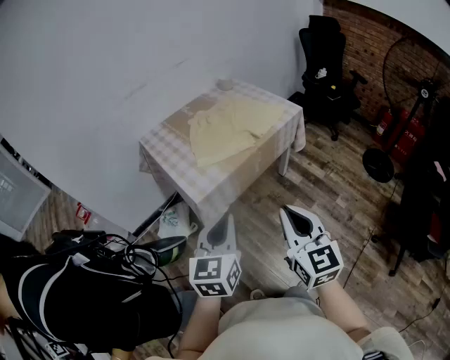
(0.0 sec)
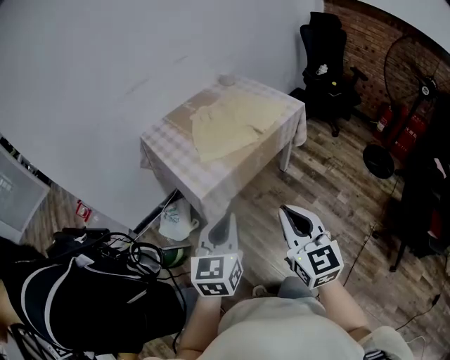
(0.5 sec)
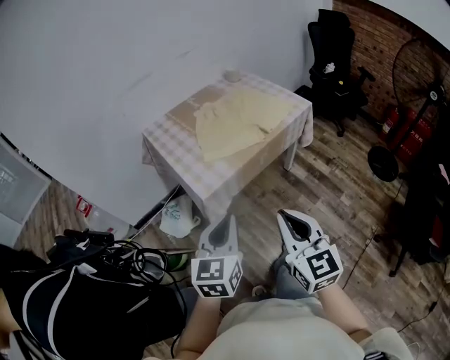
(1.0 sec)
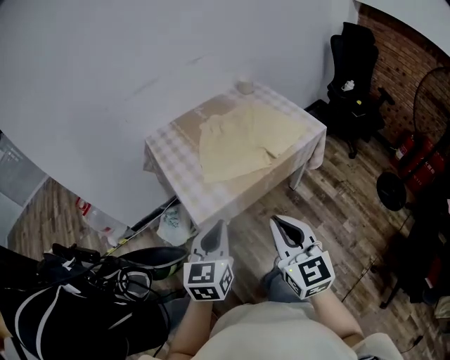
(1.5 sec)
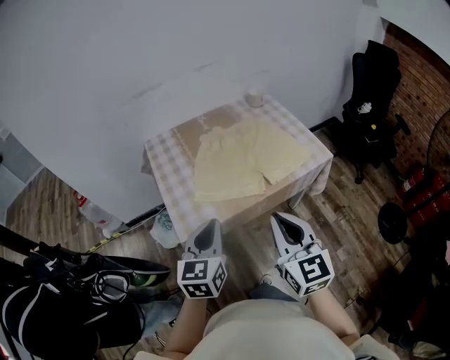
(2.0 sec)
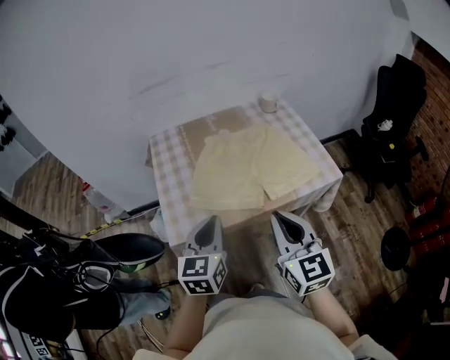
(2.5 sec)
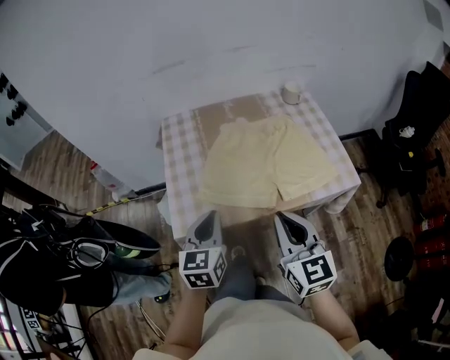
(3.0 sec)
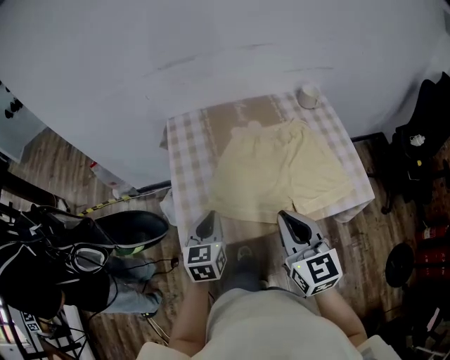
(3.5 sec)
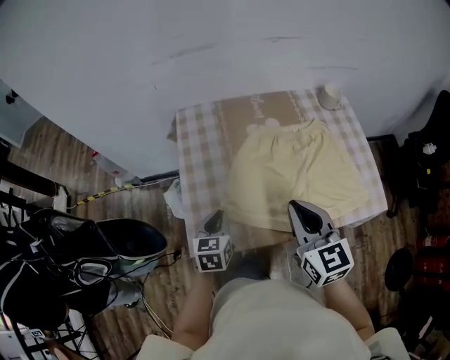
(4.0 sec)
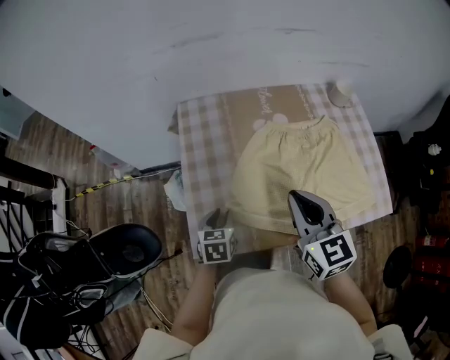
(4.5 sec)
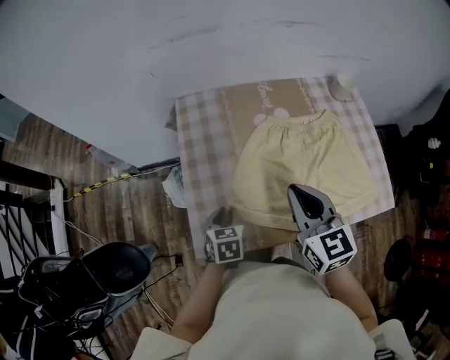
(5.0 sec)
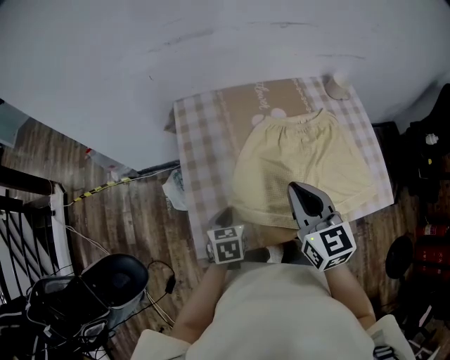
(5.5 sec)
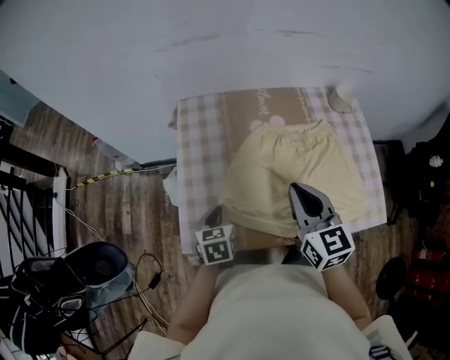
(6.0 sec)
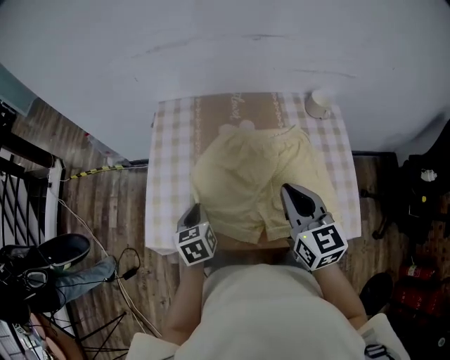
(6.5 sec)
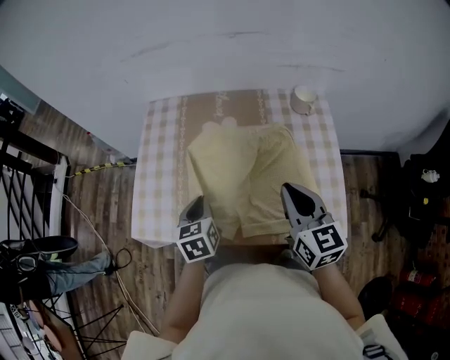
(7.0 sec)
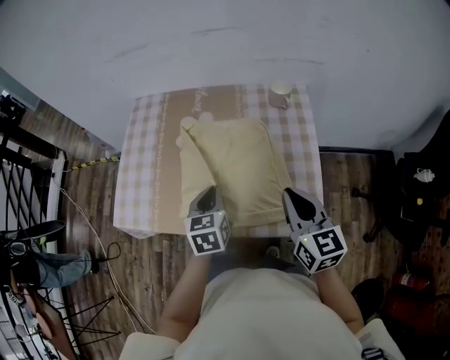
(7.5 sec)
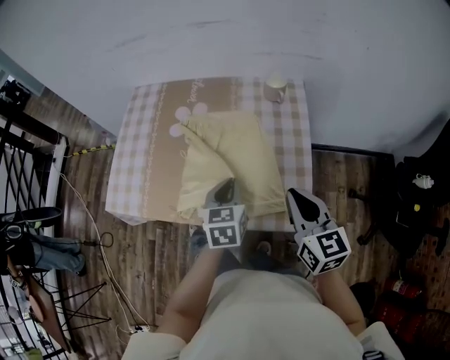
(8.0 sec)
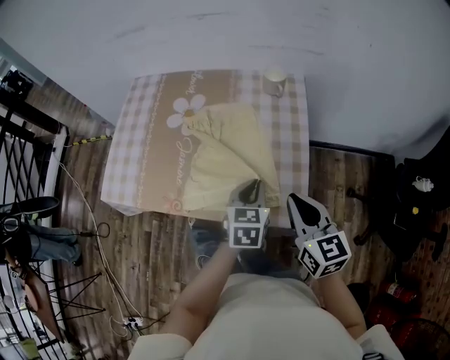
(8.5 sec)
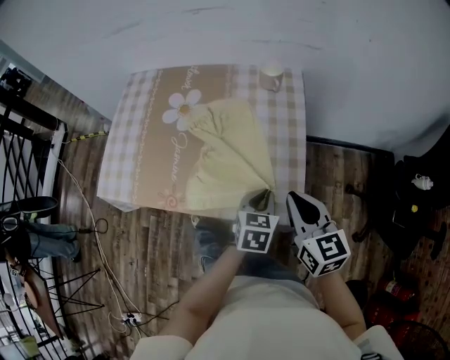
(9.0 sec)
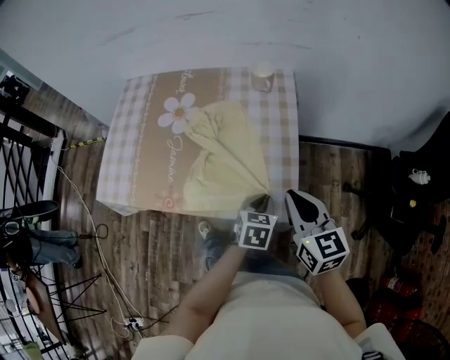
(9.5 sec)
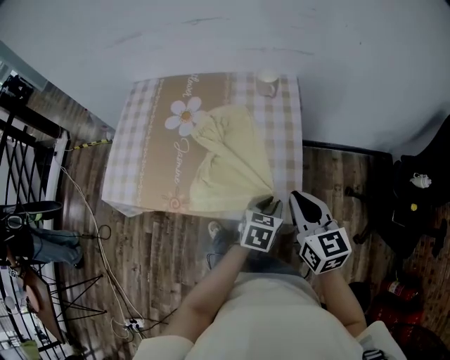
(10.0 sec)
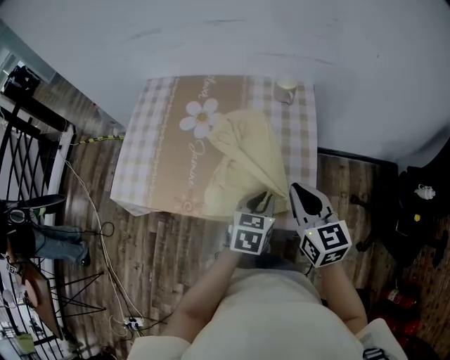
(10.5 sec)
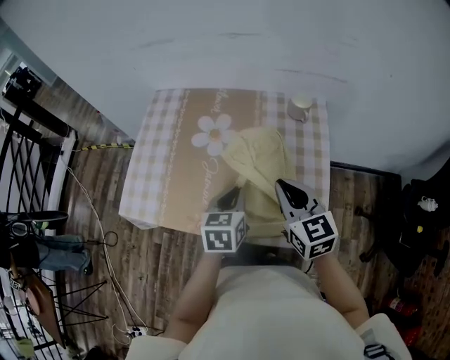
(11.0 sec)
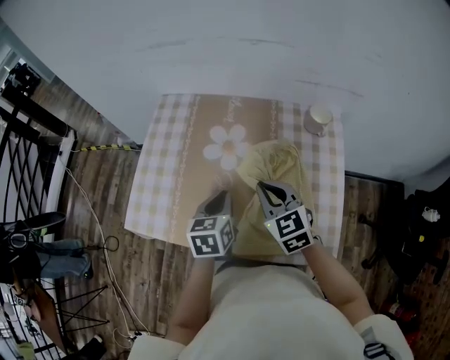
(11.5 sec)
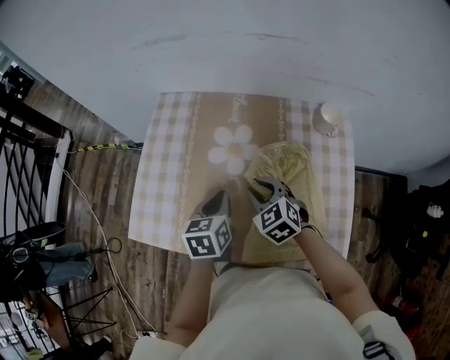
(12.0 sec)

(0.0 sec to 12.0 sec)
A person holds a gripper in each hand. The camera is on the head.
0.0 sec - 2.0 sec: The grippers both shift forward by approximately 20 cm.
2.0 sec - 4.0 sec: The right gripper travels forward by about 25 cm, and changes its angle by about 20 degrees, while the left gripper goes some 25 cm downward and forward, and turns by approximately 30 degrees.
4.0 sec - 6.0 sec: The right gripper goes roughly 5 cm forward; the left gripper opens, then closes again.
6.0 sec - 8.0 sec: The two grippers go roughly 35 cm to the right.
8.0 sec - 10.0 sec: The left gripper shifts some 20 cm to the right and backward, and rotates some 20 degrees, while the right gripper changes place by approximately 5 cm.
10.0 sec - 12.0 sec: The right gripper heads to the left, forward and downward, covering roughly 35 cm, turns by about 40 degrees, and opens its fingers. Meanwhile the left gripper is displaced to the left and forward by roughly 40 cm, and swivels some 30 degrees.

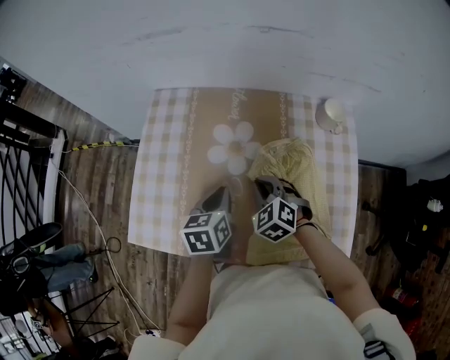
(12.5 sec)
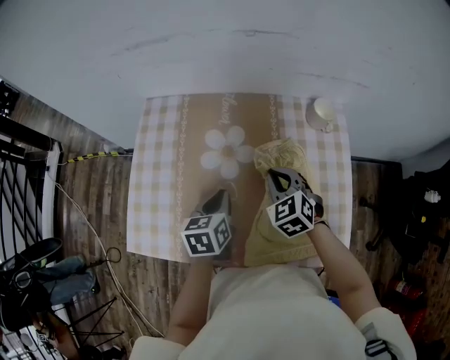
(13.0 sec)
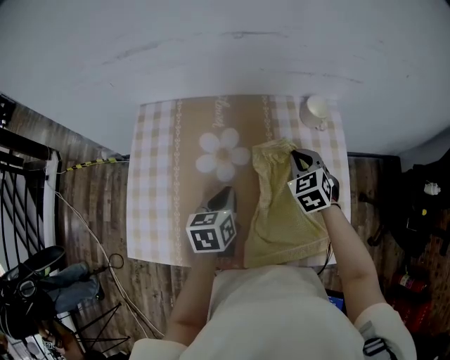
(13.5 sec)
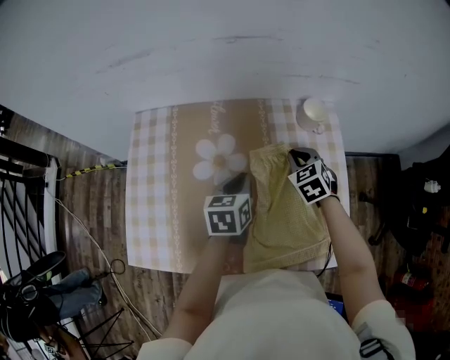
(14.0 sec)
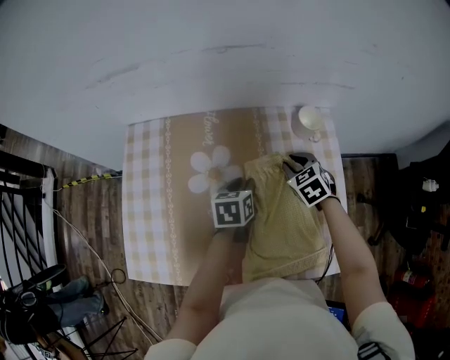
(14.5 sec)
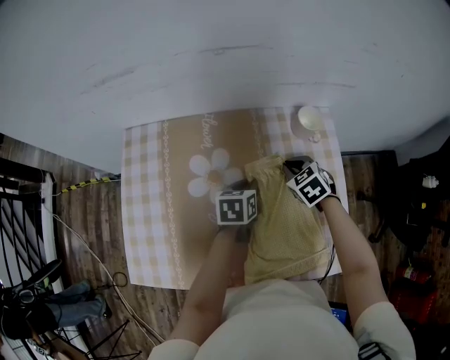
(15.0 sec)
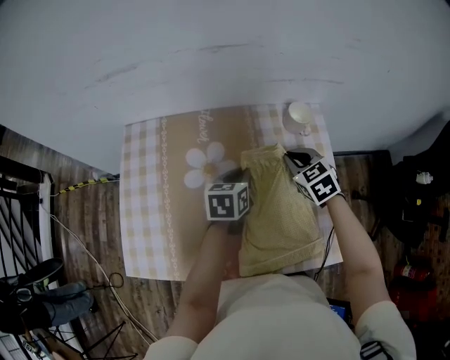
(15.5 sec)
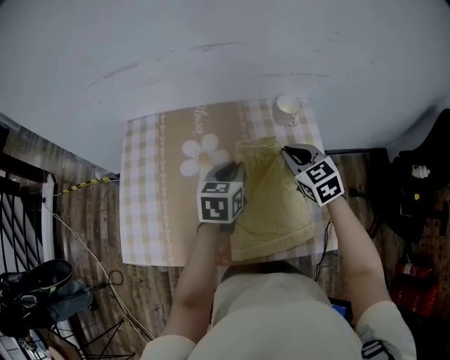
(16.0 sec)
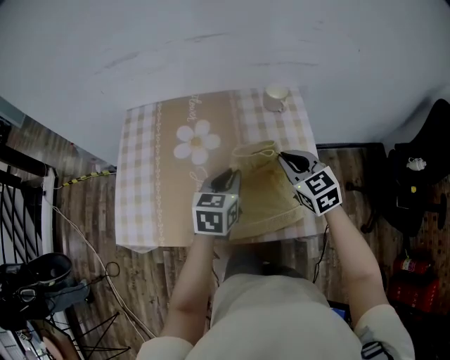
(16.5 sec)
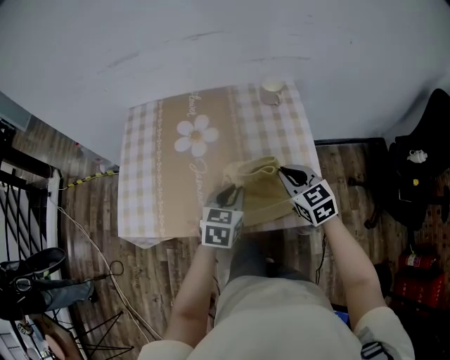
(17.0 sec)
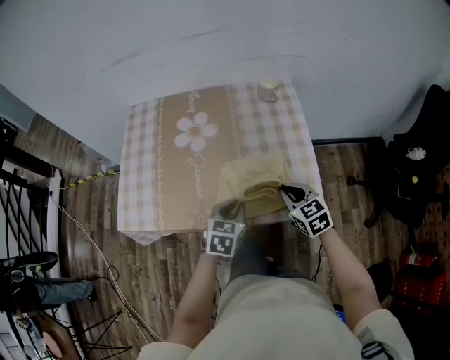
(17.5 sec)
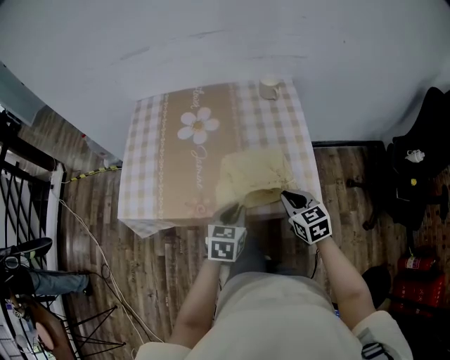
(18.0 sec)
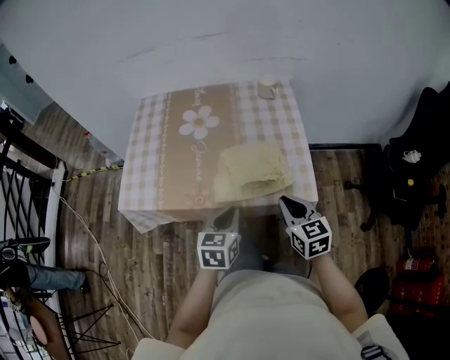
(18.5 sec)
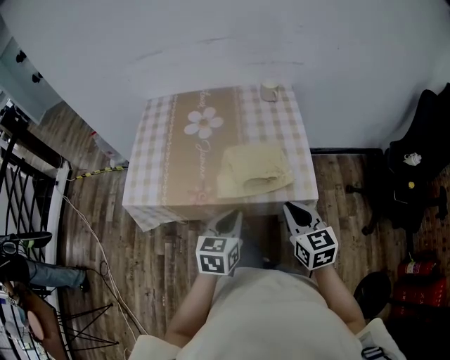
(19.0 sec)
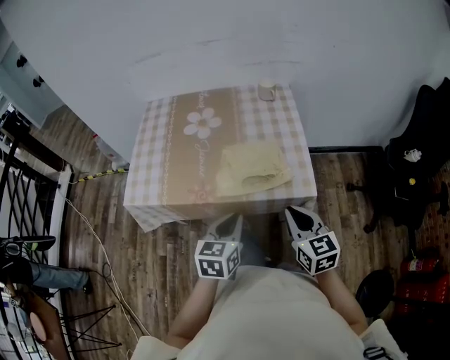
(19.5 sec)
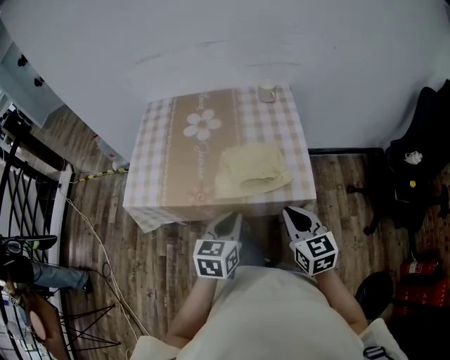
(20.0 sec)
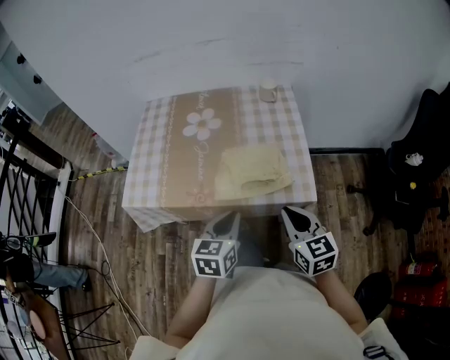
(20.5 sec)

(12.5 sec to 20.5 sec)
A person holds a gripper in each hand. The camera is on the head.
12.5 sec - 14.5 sec: Both grippers travel together to the right and forward, roughly 20 cm. The right gripper swivels about 20 degrees.
14.5 sec - 16.5 sec: Both grippers move backward and upward, roughly 20 cm. The right gripper turns by approximately 20 degrees, while the left gripper swivels roughly 20 degrees.
16.5 sec - 18.5 sec: The two grippers go some 25 cm backward.
18.5 sec - 20.5 sec: The right gripper ends up some 5 cm from where it was.

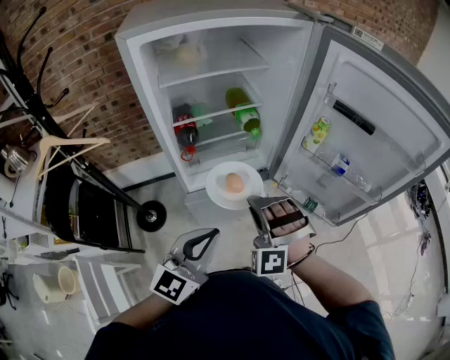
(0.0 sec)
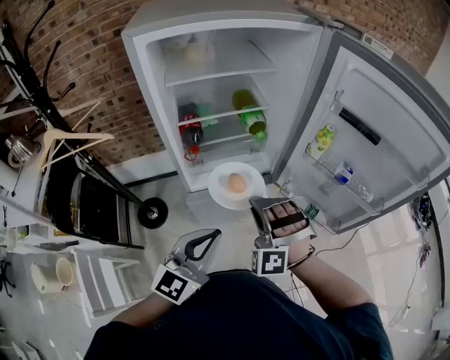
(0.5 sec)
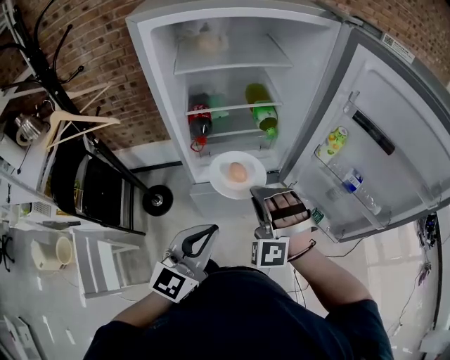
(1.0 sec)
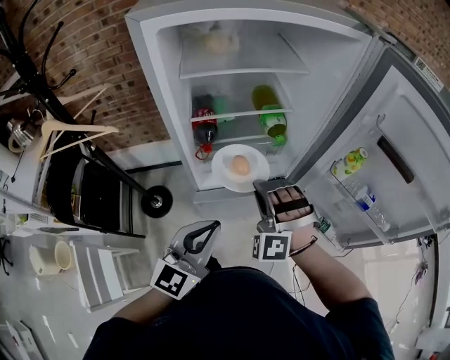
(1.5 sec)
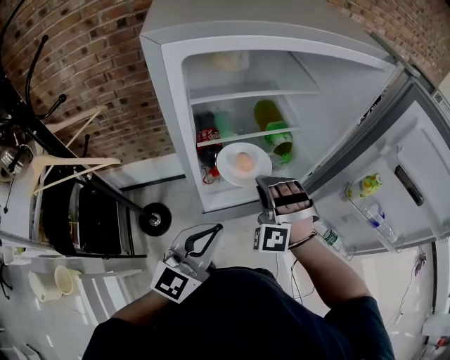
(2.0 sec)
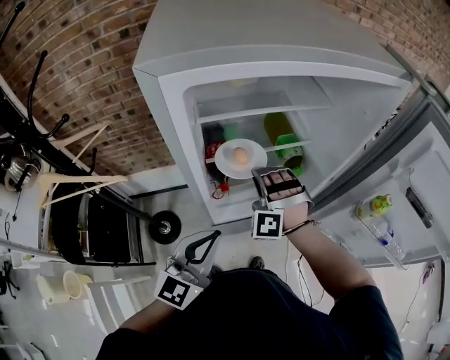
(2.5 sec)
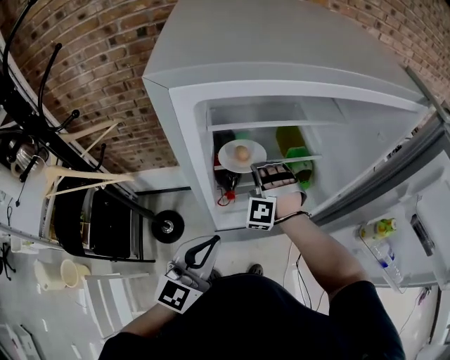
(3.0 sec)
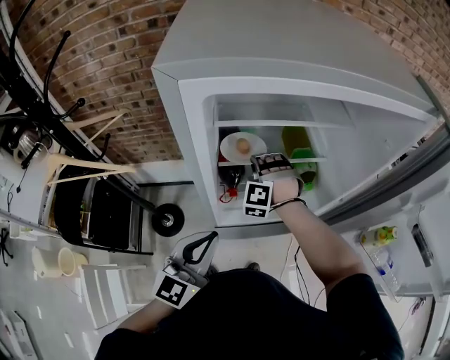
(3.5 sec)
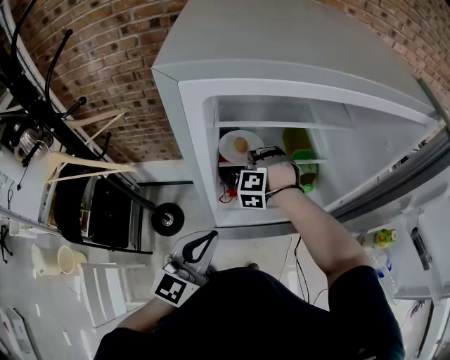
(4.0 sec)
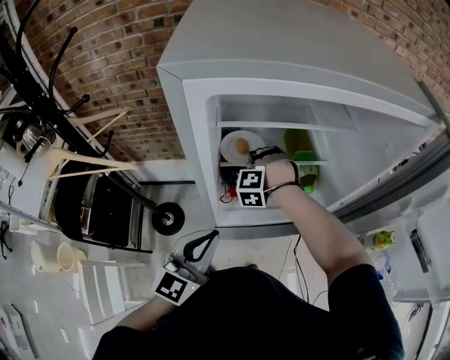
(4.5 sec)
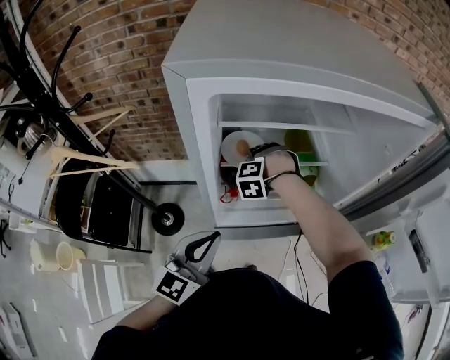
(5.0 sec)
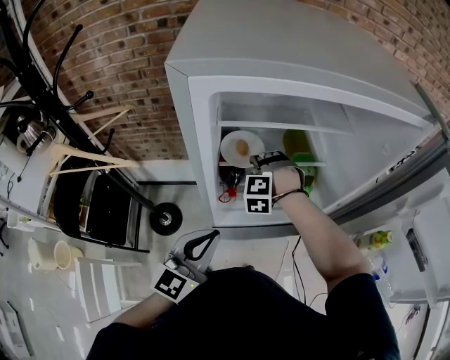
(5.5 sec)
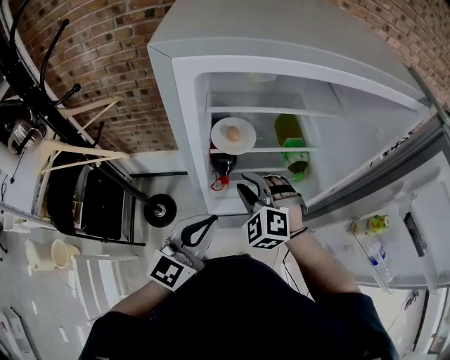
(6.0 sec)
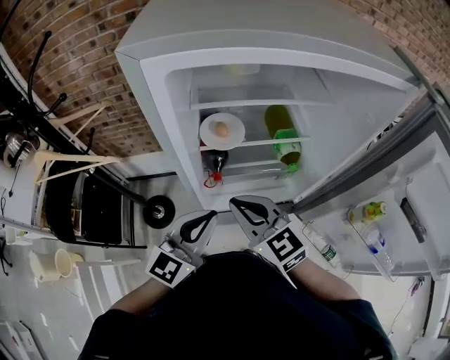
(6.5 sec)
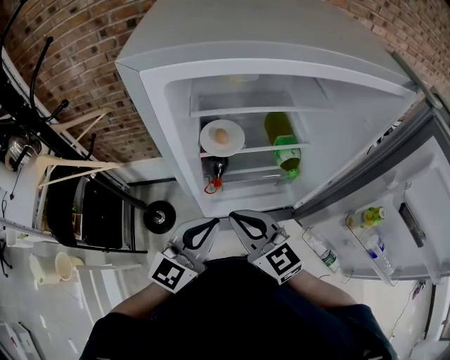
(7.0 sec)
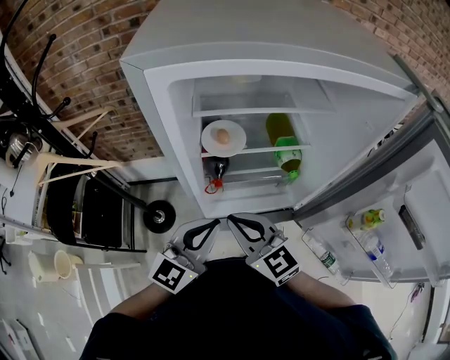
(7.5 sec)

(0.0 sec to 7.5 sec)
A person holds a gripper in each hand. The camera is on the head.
0.0 sec - 2.0 sec: The left gripper ends up roughly 20 cm from where it was.
2.0 sec - 4.0 sec: The left gripper ends up approximately 5 cm from where it was.
